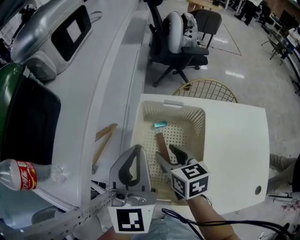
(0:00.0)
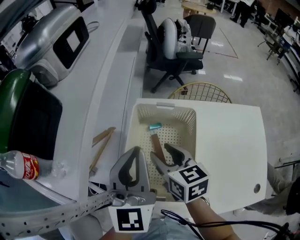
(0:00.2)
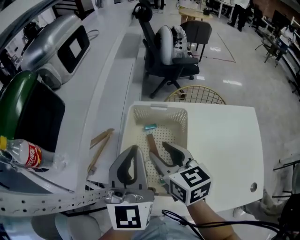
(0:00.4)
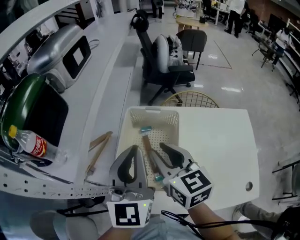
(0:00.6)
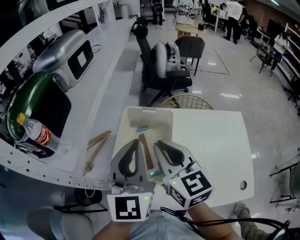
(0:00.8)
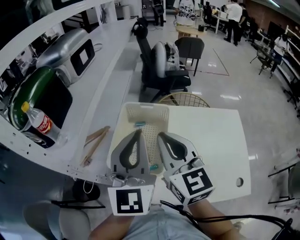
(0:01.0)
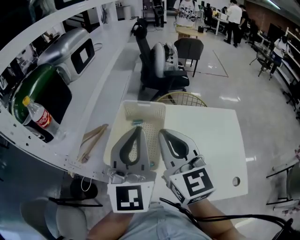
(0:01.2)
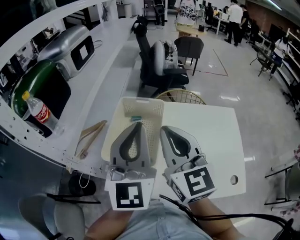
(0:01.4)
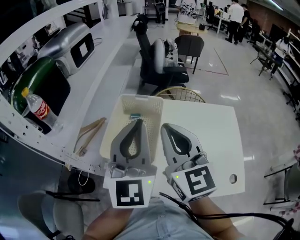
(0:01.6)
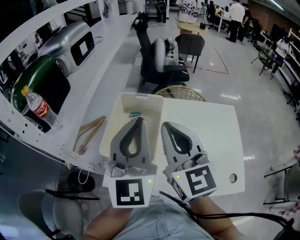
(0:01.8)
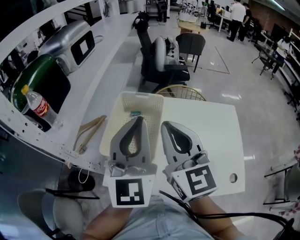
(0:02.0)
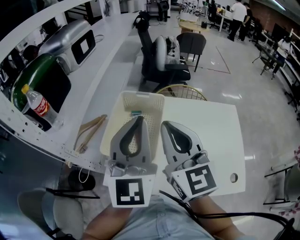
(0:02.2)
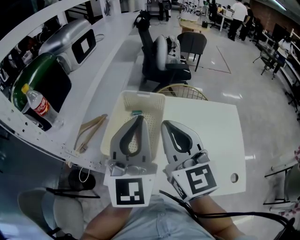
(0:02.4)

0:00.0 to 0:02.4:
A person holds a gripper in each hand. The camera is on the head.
0:00.0 to 0:01.2: The left gripper is displaced backward, upward and to the right by approximately 25 cm, while the right gripper heads upward and backward, covering approximately 30 cm, angles its fingers upward, by approximately 40 degrees, and closes up.
0:01.2 to 0:02.4: There are only small adjustments of the grippers.

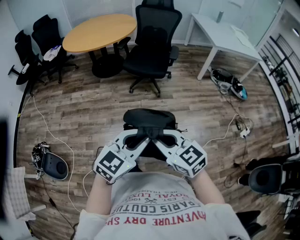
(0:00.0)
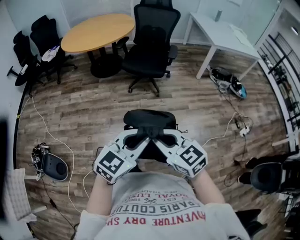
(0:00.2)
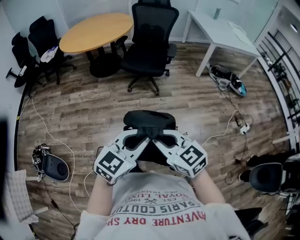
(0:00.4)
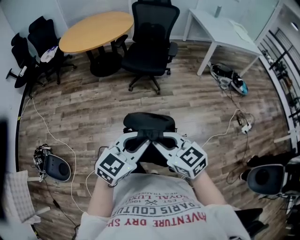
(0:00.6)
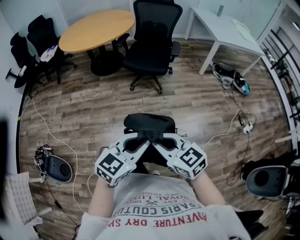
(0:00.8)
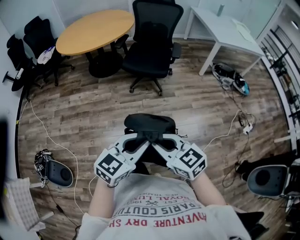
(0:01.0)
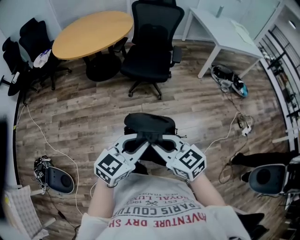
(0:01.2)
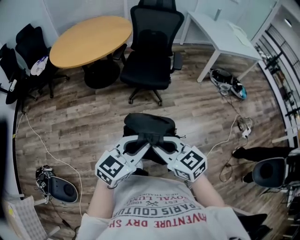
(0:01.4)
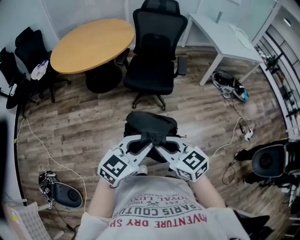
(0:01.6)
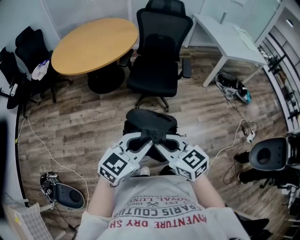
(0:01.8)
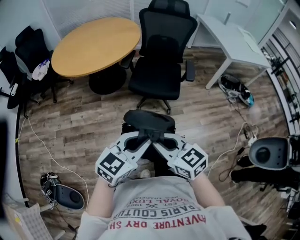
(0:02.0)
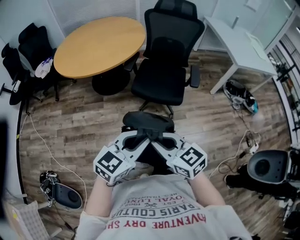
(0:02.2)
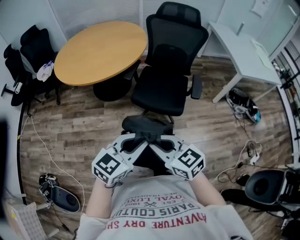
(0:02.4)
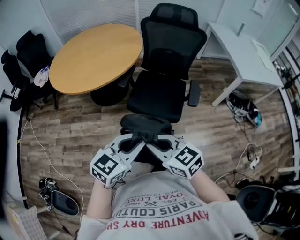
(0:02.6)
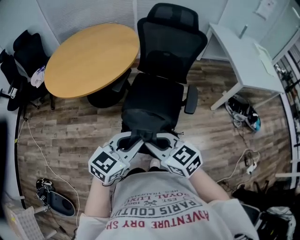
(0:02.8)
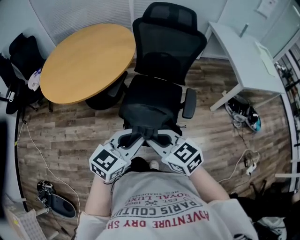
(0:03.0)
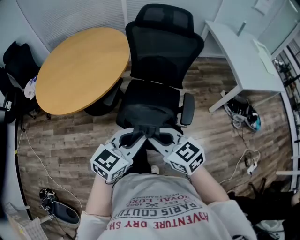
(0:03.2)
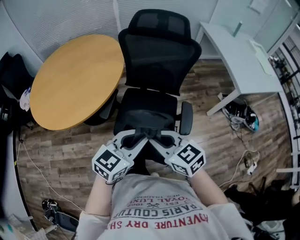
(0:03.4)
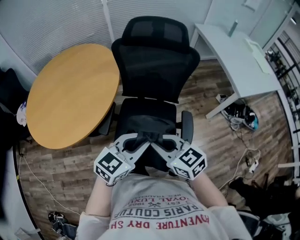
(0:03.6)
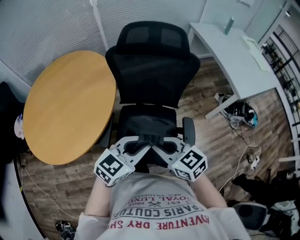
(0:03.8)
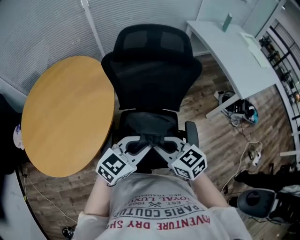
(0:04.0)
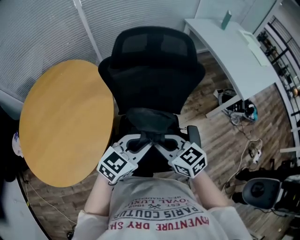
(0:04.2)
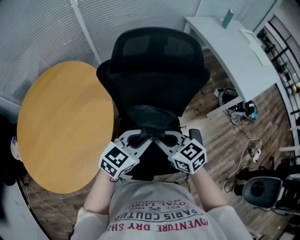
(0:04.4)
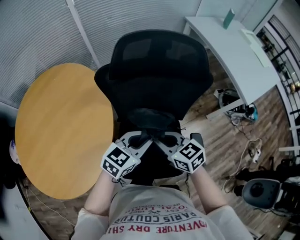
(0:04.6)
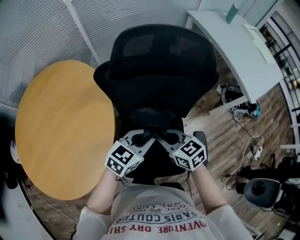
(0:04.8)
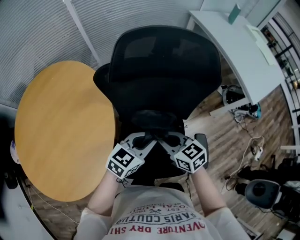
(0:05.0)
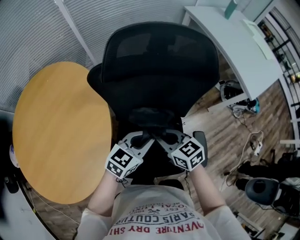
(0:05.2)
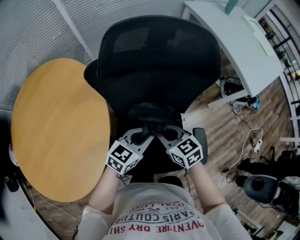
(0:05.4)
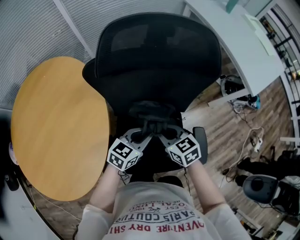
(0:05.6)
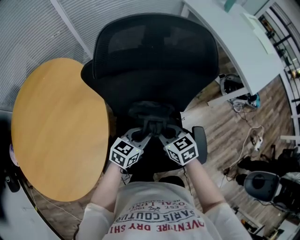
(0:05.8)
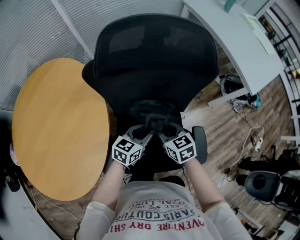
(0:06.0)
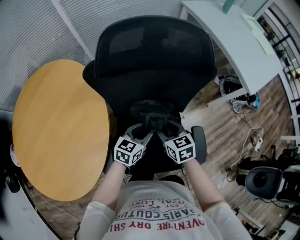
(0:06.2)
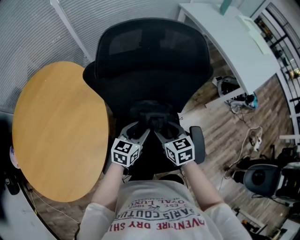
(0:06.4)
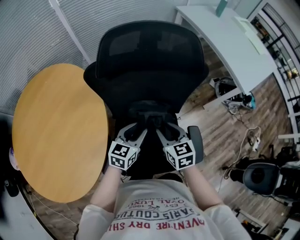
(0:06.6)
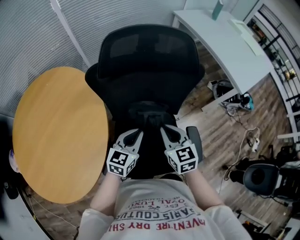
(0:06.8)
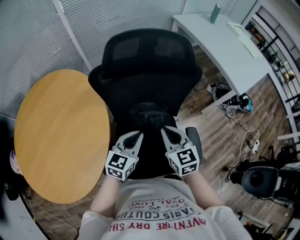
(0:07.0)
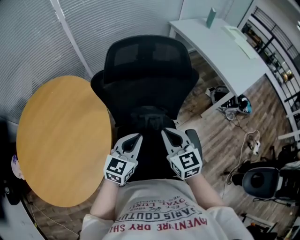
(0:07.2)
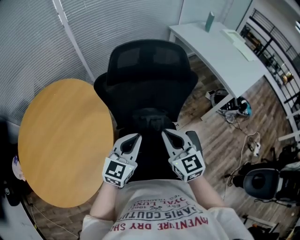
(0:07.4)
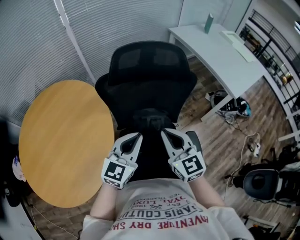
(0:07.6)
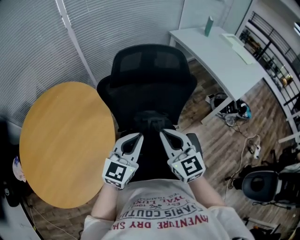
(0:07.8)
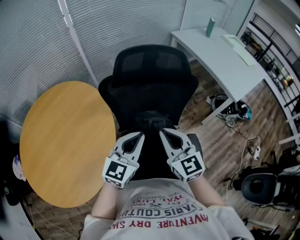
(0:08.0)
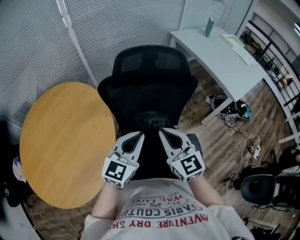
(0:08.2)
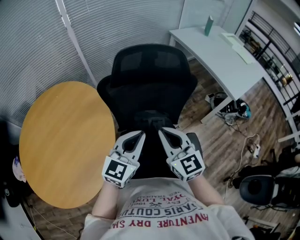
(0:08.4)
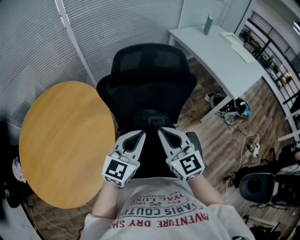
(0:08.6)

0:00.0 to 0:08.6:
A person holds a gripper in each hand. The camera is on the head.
0:00.0 to 0:01.4: Both grippers move forward and to the left, some 20 cm.
0:01.4 to 0:02.8: The two grippers go about 40 cm forward.
0:02.8 to 0:04.4: The two grippers travel together, forward, some 50 cm. The left gripper changes its angle by about 20 degrees. The right gripper turns by about 30 degrees.
0:04.4 to 0:05.8: Both grippers travel together downward and forward, about 15 cm.
0:05.8 to 0:07.2: Both grippers travel together upward, roughly 15 cm. The right gripper rotates roughly 30 degrees, and opens, then closes again. The left gripper swivels approximately 20 degrees, and opens, then closes once more.
0:07.2 to 0:08.6: Both grippers move upward, roughly 10 cm.

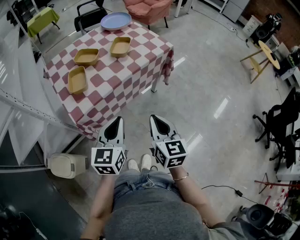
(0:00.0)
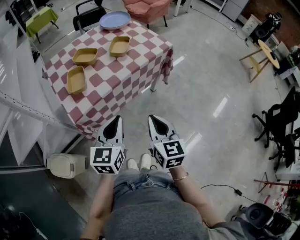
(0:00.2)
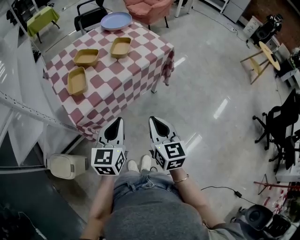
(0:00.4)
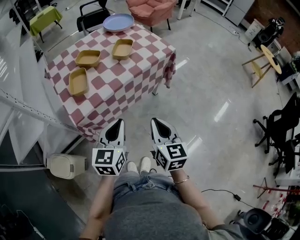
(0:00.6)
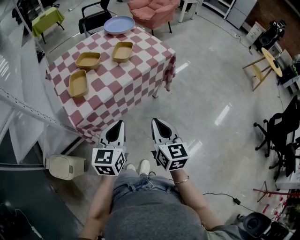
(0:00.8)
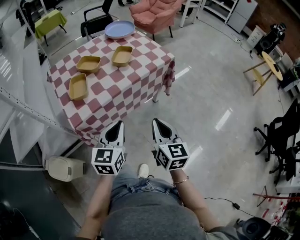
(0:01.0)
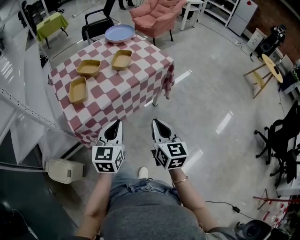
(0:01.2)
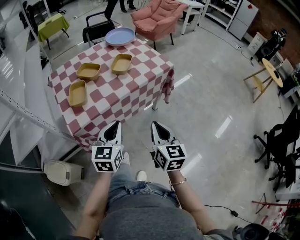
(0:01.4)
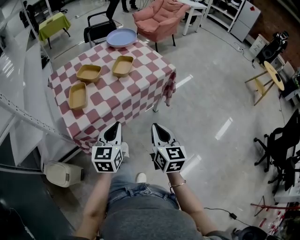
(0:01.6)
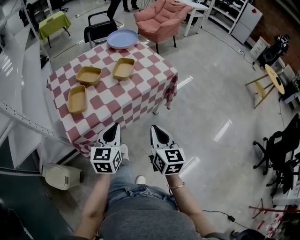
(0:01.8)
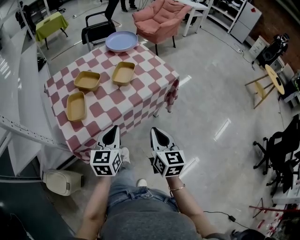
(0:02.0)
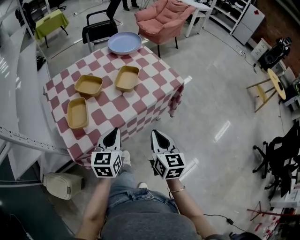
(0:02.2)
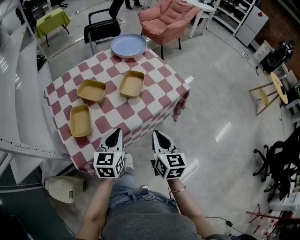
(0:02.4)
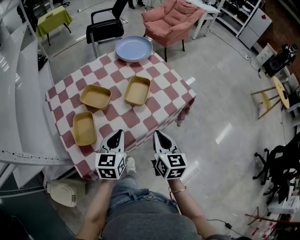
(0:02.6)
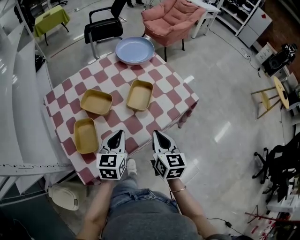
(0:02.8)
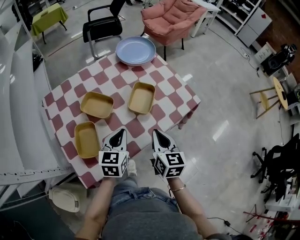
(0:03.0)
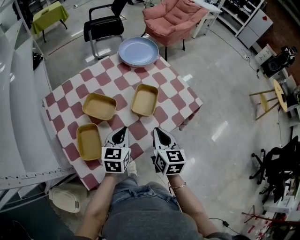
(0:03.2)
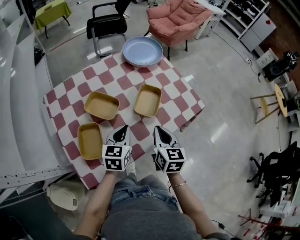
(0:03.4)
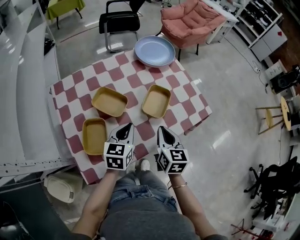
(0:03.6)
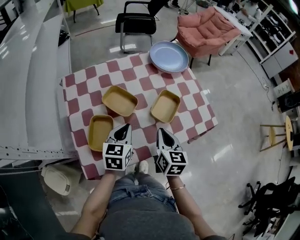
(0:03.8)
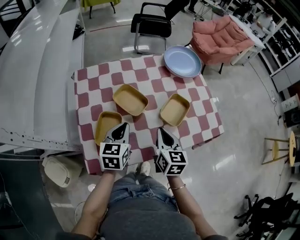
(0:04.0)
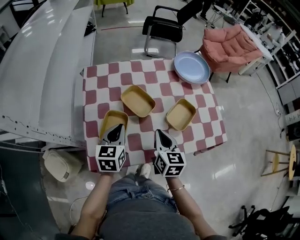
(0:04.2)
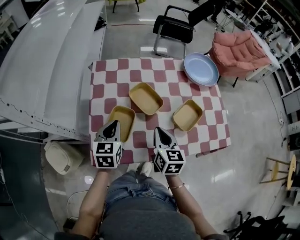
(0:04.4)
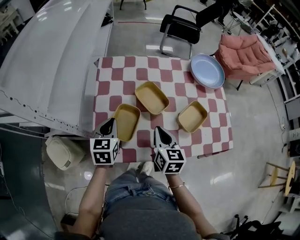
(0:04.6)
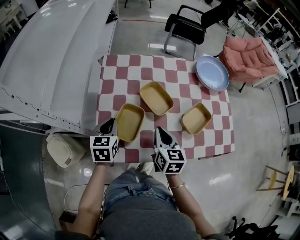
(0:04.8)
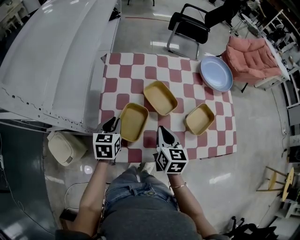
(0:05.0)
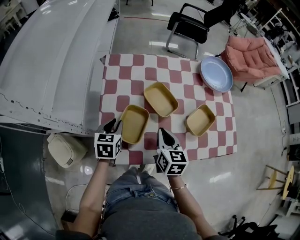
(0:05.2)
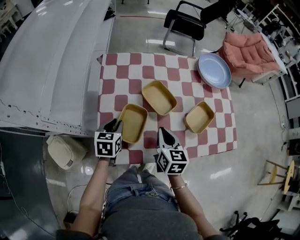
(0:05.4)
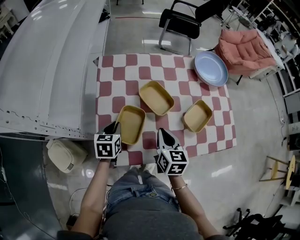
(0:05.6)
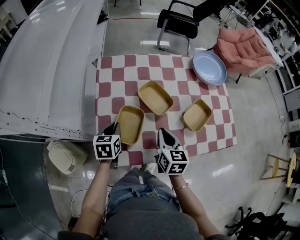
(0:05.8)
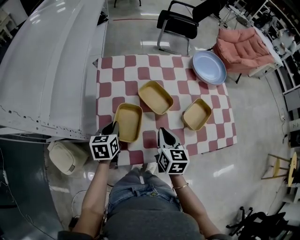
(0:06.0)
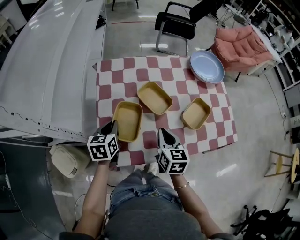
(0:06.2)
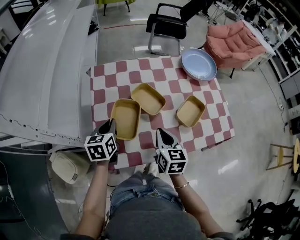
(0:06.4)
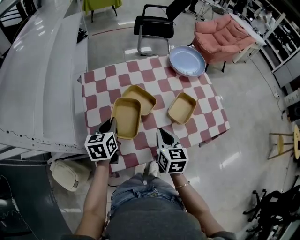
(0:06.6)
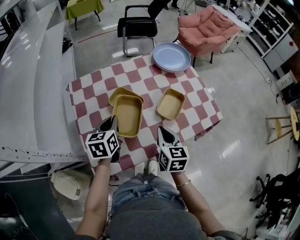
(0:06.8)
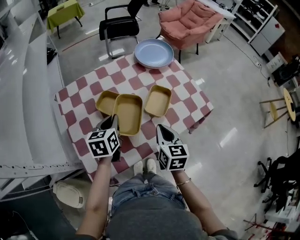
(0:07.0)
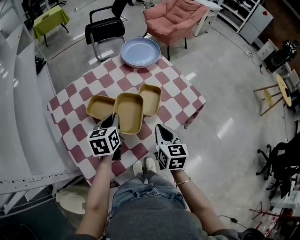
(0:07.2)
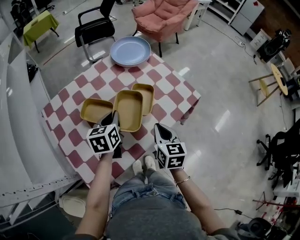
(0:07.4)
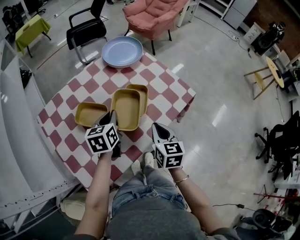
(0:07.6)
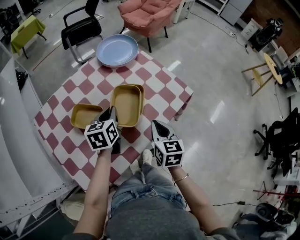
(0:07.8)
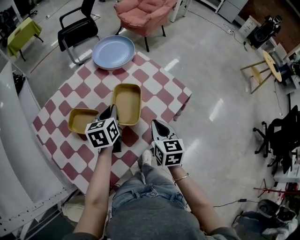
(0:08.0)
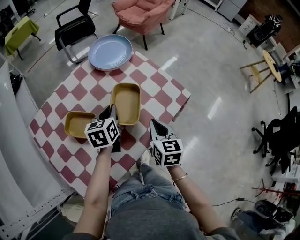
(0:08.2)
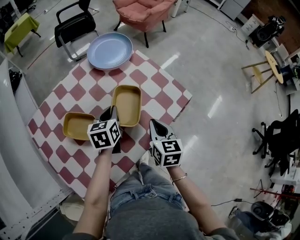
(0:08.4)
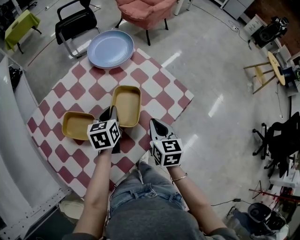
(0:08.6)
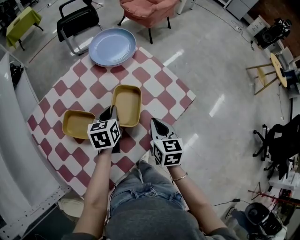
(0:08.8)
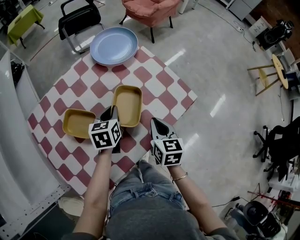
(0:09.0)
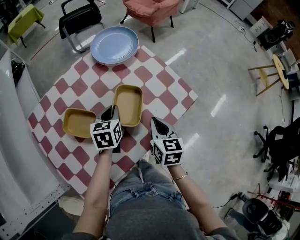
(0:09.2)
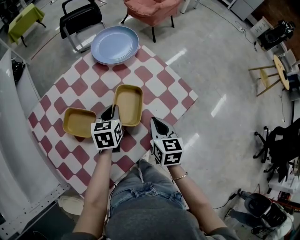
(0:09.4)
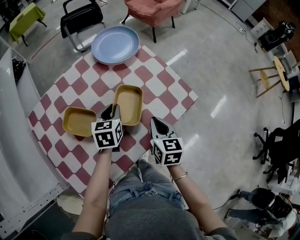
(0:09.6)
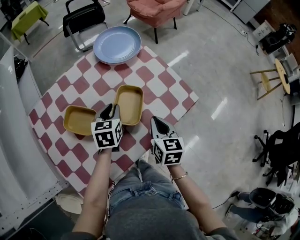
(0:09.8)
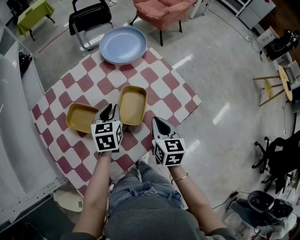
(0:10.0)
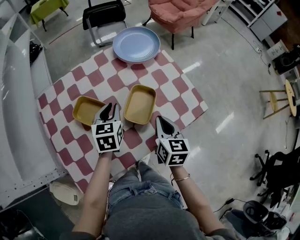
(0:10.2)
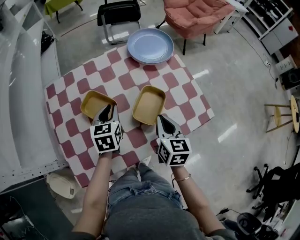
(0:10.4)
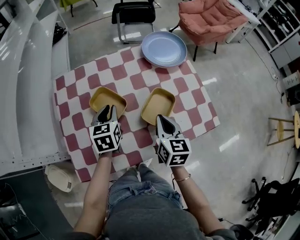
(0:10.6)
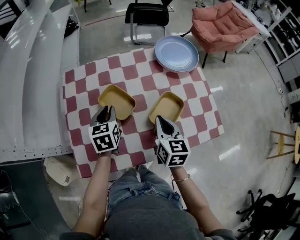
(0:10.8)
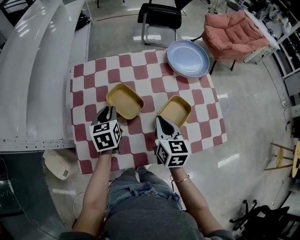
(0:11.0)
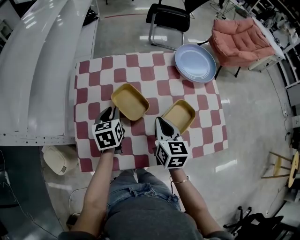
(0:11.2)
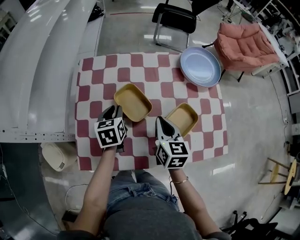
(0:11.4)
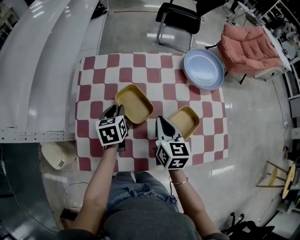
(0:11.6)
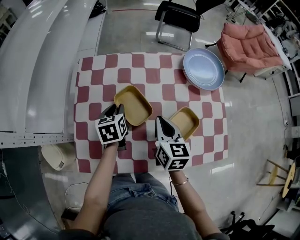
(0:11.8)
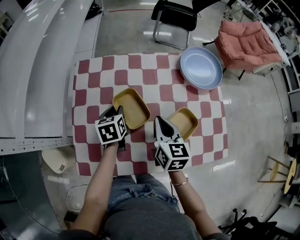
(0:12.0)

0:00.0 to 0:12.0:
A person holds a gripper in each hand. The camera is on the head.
0:00.0 to 0:01.6: Both grippers move forward, about 10 cm.
0:01.6 to 0:03.0: The right gripper moves forward and to the left, some 30 cm; the left gripper is displaced forward by roughly 25 cm.
0:03.0 to 0:04.4: The right gripper changes place by approximately 15 cm, and swivels approximately 30 degrees, while the left gripper moves some 20 cm, and changes its angle by approximately 30 degrees.
0:04.4 to 0:06.0: The left gripper travels downward and to the left by approximately 10 cm.
0:06.0 to 0:07.6: The left gripper shifts by about 30 cm, and rotates roughly 30 degrees; the right gripper changes place by approximately 20 cm, and rotates roughly 30 degrees.
0:07.6 to 0:09.0: The right gripper is displaced forward by roughly 10 cm. The left gripper heads forward and downward, covering about 10 cm.
0:09.0 to 0:10.4: The left gripper moves to the left, about 10 cm, and turns by approximately 20 degrees; the right gripper travels to the left by approximately 5 cm.
0:10.4 to 0:12.0: The left gripper is displaced to the left and downward by approximately 15 cm, and swivels roughly 30 degrees; the right gripper heads to the left and forward, covering approximately 15 cm, and rotates some 20 degrees.
